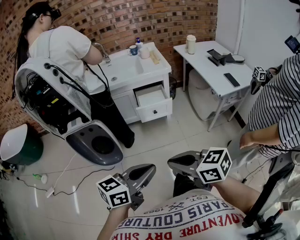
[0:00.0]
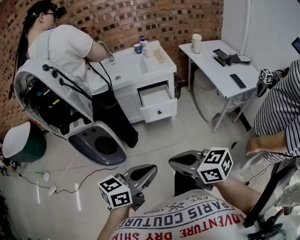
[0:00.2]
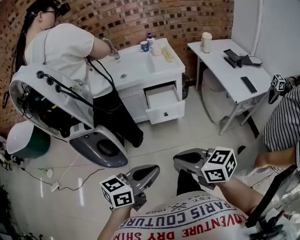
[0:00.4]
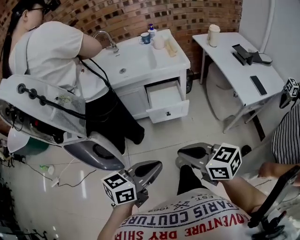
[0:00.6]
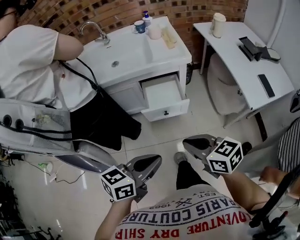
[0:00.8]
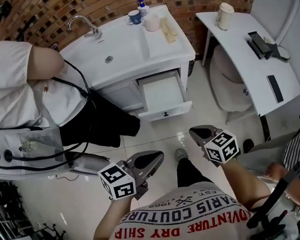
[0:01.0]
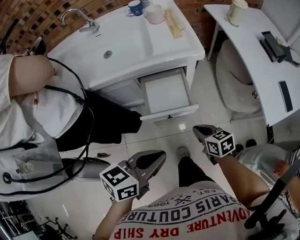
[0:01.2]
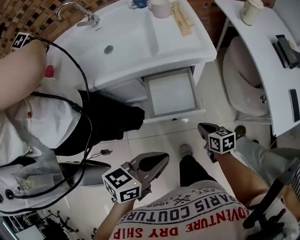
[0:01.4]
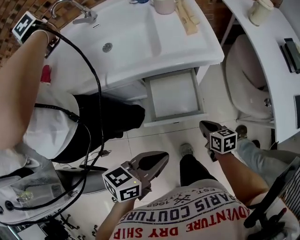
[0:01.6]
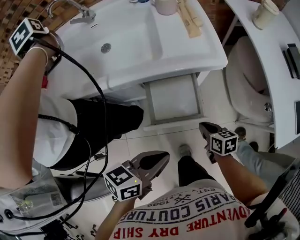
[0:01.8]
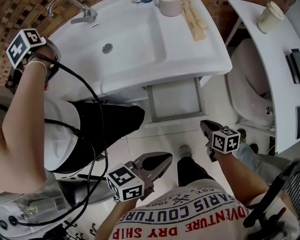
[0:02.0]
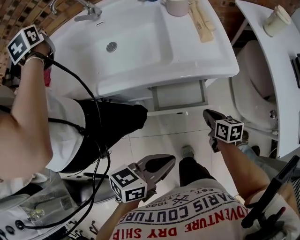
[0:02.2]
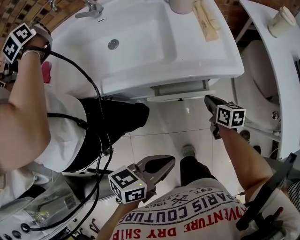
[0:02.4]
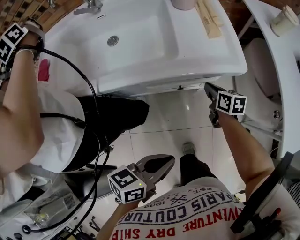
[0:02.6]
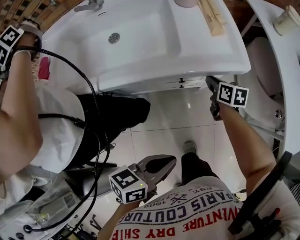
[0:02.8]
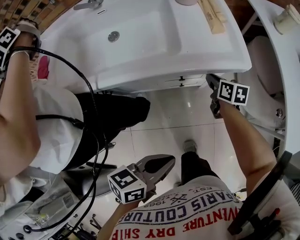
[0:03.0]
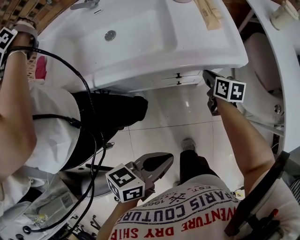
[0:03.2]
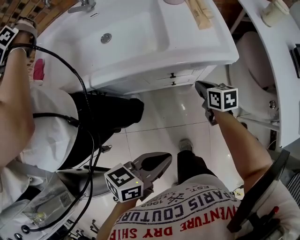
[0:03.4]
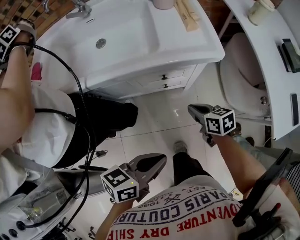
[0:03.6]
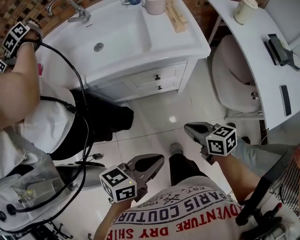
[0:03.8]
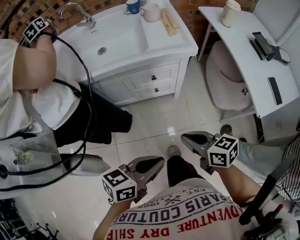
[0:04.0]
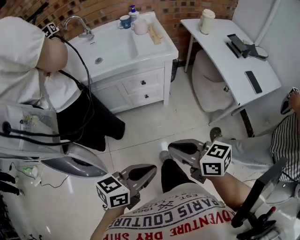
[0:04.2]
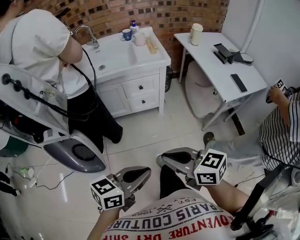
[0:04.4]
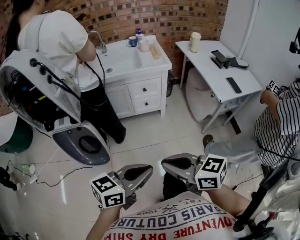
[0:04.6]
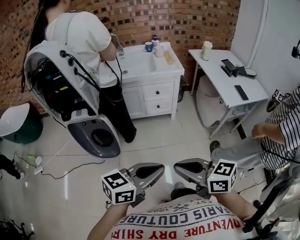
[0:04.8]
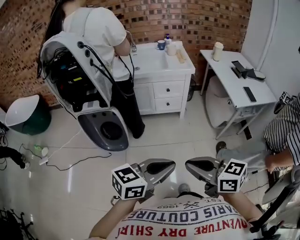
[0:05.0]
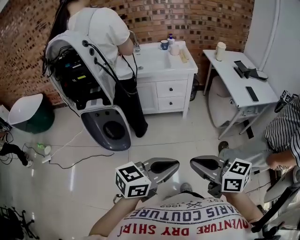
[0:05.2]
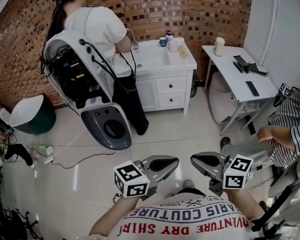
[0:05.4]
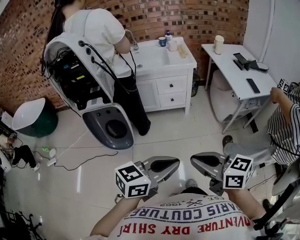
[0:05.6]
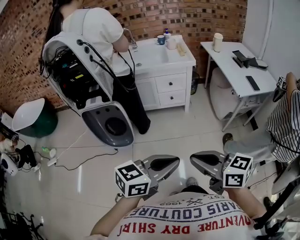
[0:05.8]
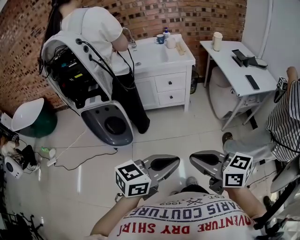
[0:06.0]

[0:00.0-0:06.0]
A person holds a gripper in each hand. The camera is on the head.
0:00.0 to 0:01.6: The two grippers travel together, forward, roughly 50 cm. The right gripper travels downward by approximately 40 cm, and changes its angle by roughly 40 degrees, while the left gripper swivels about 20 degrees.
0:01.6 to 0:03.0: The right gripper moves forward, about 20 cm; the left gripper ends up approximately 5 cm from where it was.
0:03.0 to 0:04.4: The left gripper heads backward and upward, covering roughly 40 cm, and changes its angle by roughly 20 degrees. Meanwhile the right gripper heads backward and upward, covering about 70 cm, and turns by approximately 40 degrees.
0:04.4 to 0:06.0: The grippers both shift backward and upward by some 20 cm.

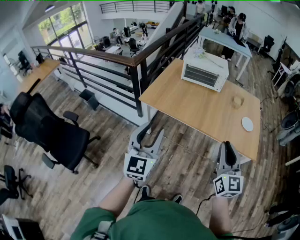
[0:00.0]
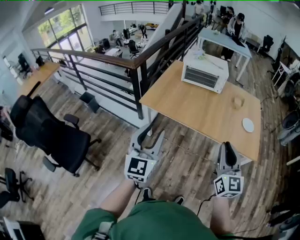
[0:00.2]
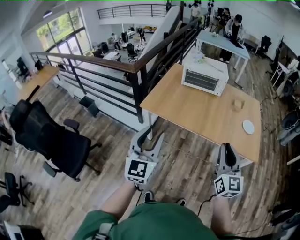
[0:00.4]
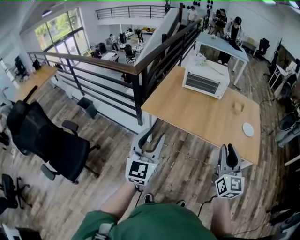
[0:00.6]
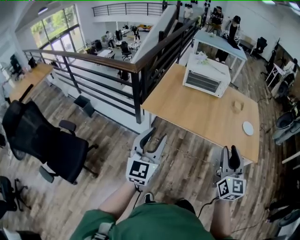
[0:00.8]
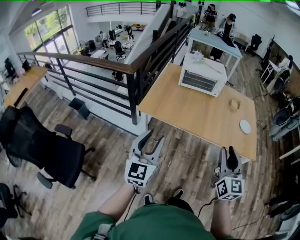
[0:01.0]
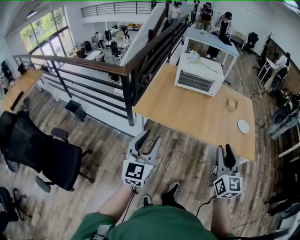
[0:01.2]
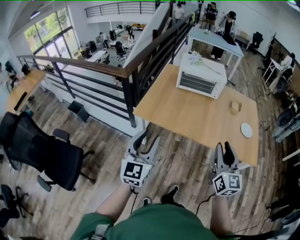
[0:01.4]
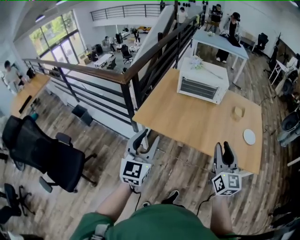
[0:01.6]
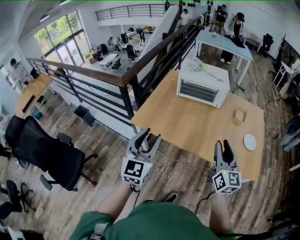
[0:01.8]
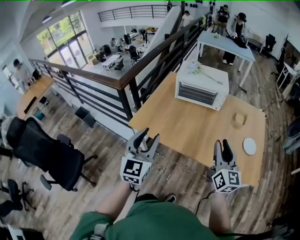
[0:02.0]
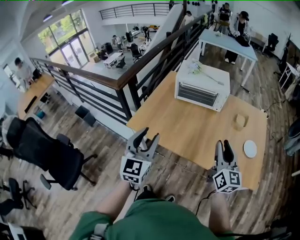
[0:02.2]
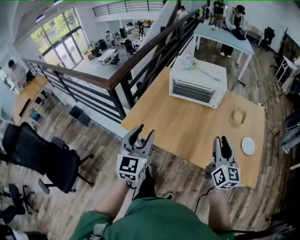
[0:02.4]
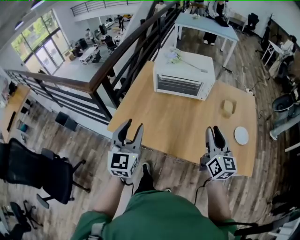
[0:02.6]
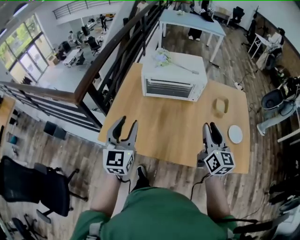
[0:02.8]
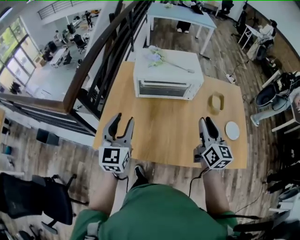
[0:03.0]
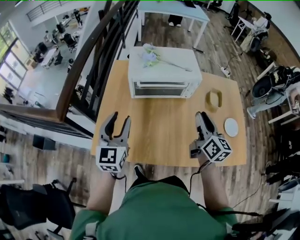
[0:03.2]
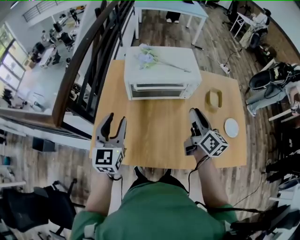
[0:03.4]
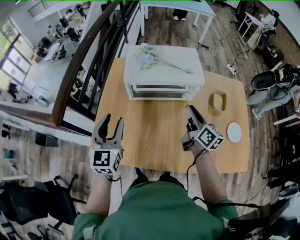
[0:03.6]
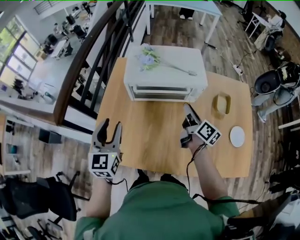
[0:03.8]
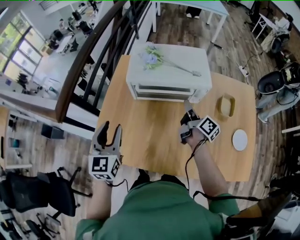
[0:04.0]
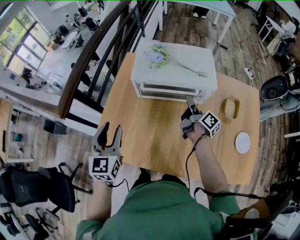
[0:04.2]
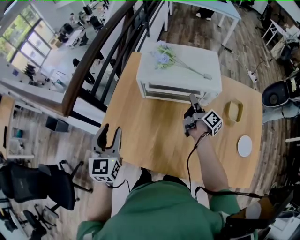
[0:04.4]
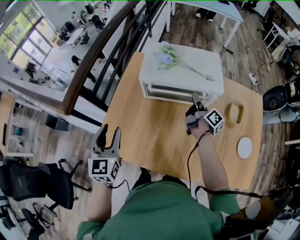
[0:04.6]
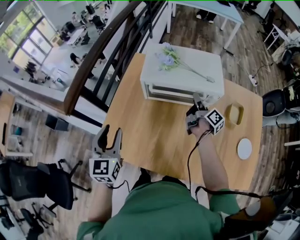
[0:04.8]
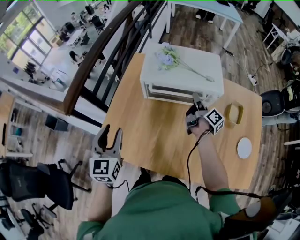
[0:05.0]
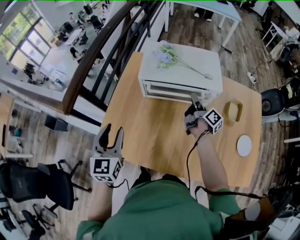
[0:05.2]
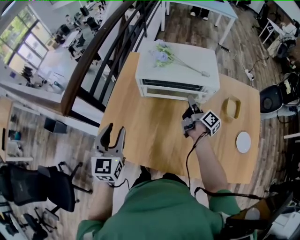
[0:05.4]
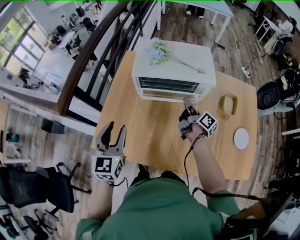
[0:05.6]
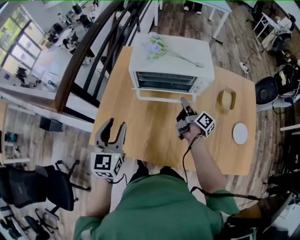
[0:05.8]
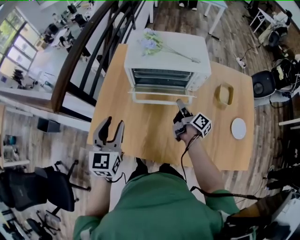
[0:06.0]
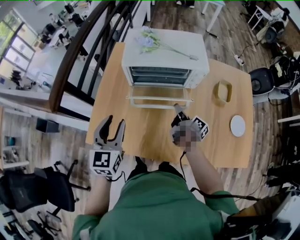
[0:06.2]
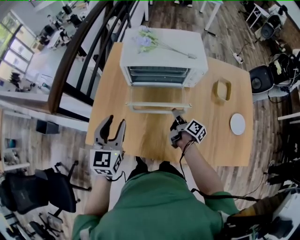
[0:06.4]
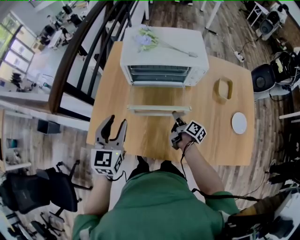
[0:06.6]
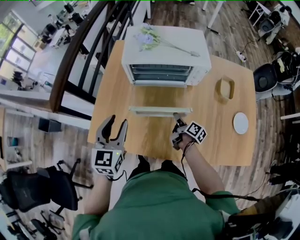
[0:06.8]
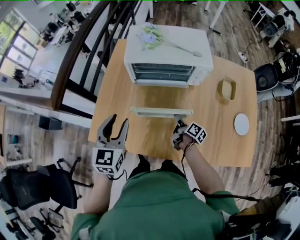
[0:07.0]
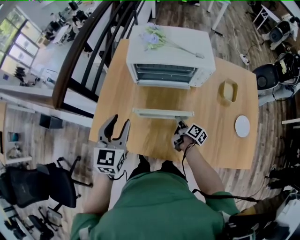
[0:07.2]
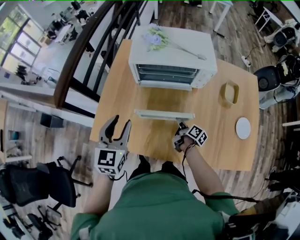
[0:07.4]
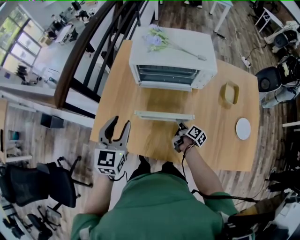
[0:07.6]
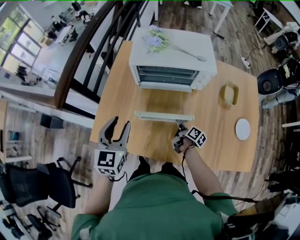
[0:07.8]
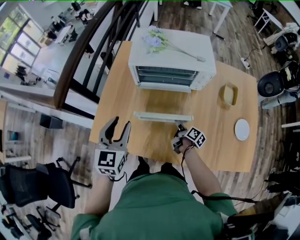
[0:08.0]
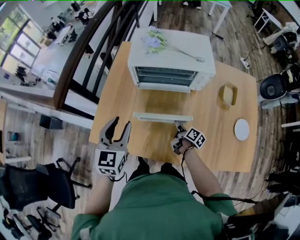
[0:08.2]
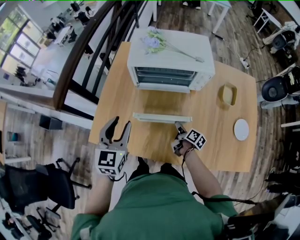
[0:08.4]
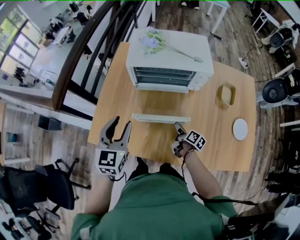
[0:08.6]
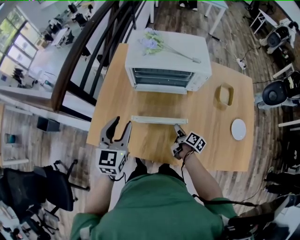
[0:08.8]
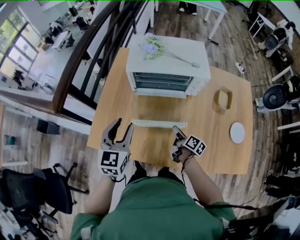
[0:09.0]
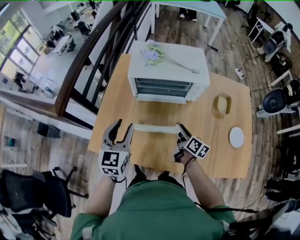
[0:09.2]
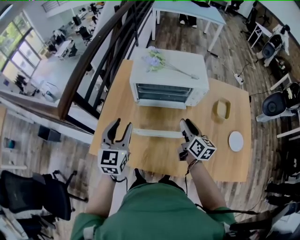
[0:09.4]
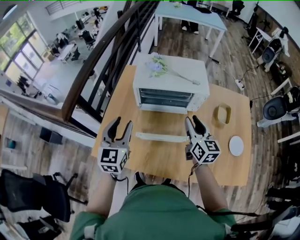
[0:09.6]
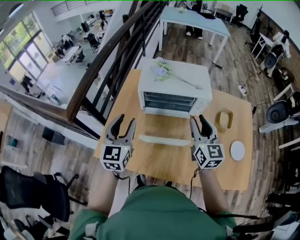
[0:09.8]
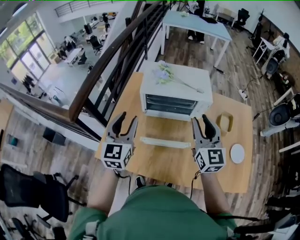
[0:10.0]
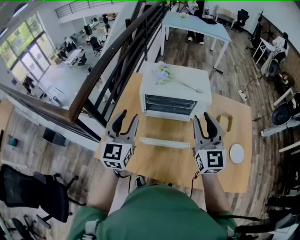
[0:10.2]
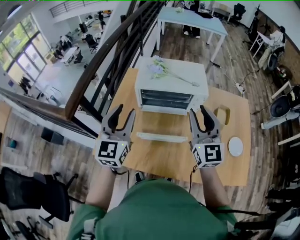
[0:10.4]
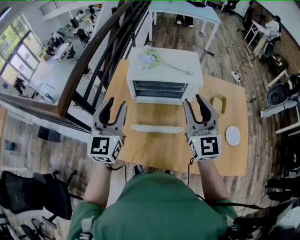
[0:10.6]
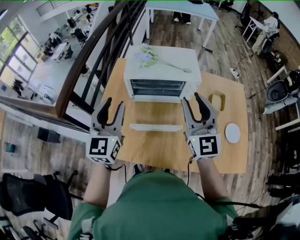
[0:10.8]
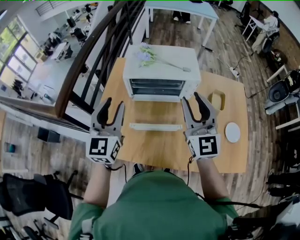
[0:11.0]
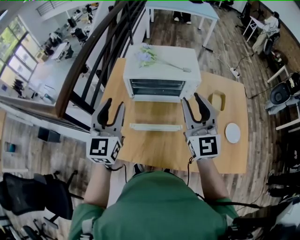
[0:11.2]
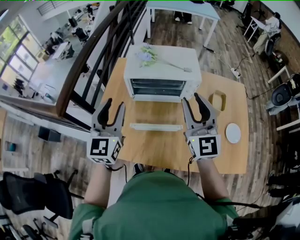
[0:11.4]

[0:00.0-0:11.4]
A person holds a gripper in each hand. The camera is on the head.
0:00.0 to 0:01.4: Both grippers travel together forward and to the left, some 10 cm.
0:01.4 to 0:02.8: The two grippers go approximately 30 cm forward.
0:02.8 to 0:04.2: The right gripper shifts some 35 cm forward and downward, and twists about 60 degrees clockwise, seen from behind, while the left gripper goes roughly 15 cm forward and downward.
0:04.2 to 0:05.6: There are only small adjustments of the grippers.
0:05.6 to 0:07.2: The right gripper moves downward and backward, roughly 20 cm.
0:07.2 to 0:08.6: The grippers move only a little.
0:08.6 to 0:10.0: The right gripper travels upward by about 40 cm, and twists approximately 70 degrees counterclockwise, seen from behind. Meanwhile the left gripper is displaced upward by roughly 10 cm.
0:10.0 to 0:11.4: The grippers make only small movements.

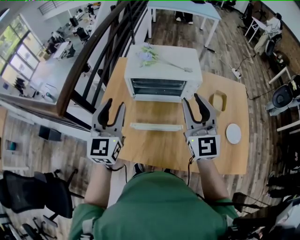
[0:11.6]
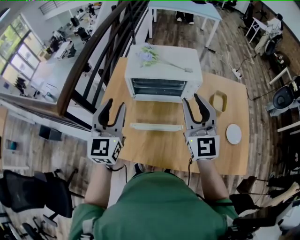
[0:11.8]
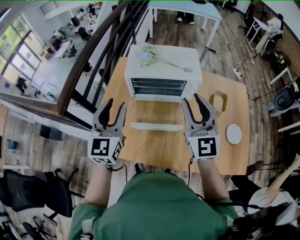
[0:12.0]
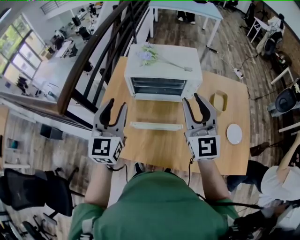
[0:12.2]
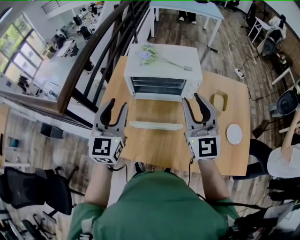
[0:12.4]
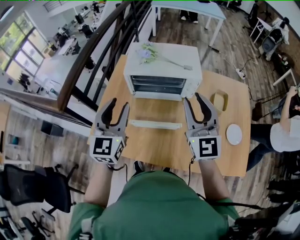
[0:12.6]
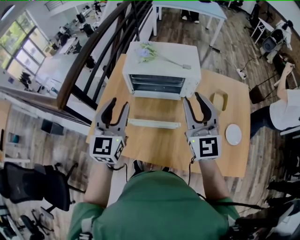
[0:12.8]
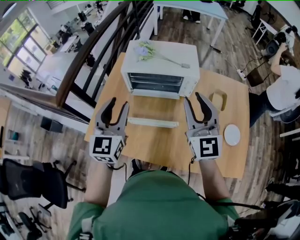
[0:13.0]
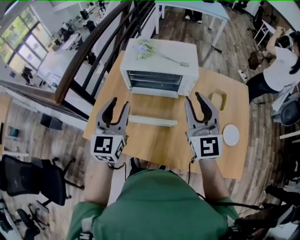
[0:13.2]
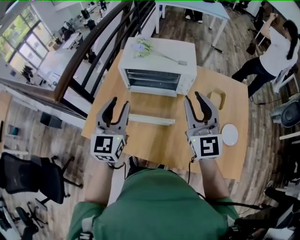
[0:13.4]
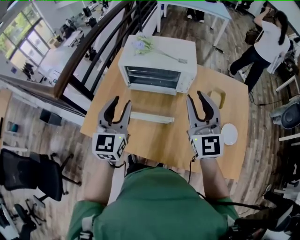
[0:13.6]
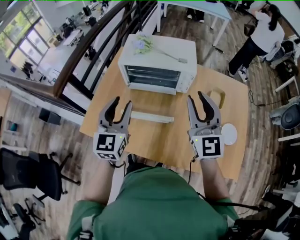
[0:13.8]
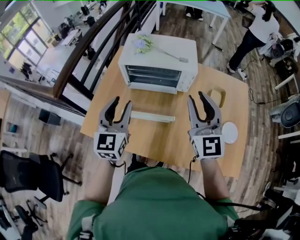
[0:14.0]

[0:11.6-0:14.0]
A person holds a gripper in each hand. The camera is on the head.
0:11.6 to 0:12.8: The left gripper shifts by roughly 5 cm.
0:12.8 to 0:14.0: The left gripper ends up approximately 5 cm from where it was.

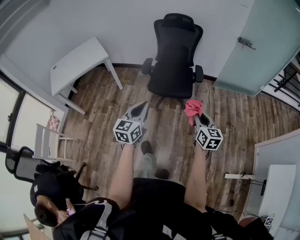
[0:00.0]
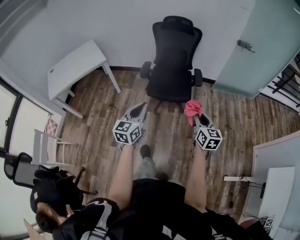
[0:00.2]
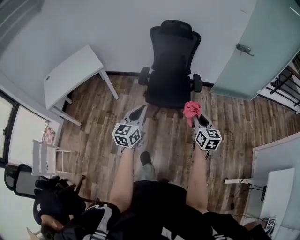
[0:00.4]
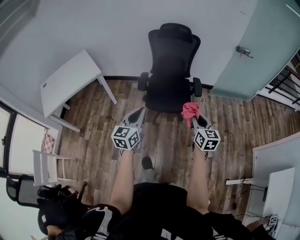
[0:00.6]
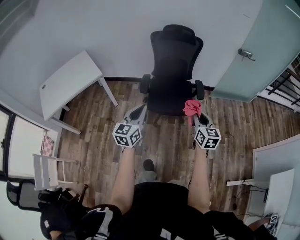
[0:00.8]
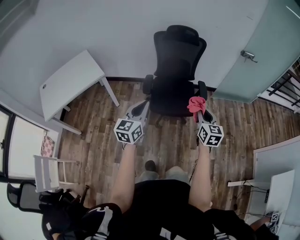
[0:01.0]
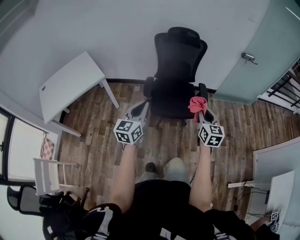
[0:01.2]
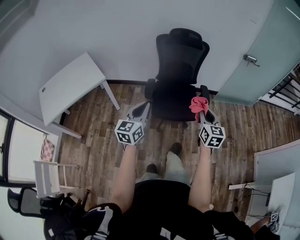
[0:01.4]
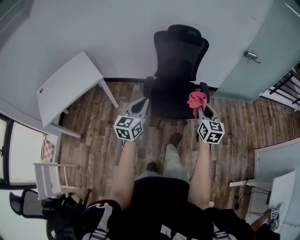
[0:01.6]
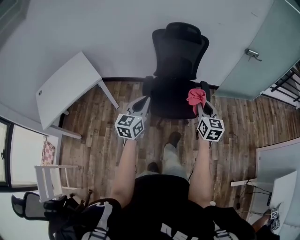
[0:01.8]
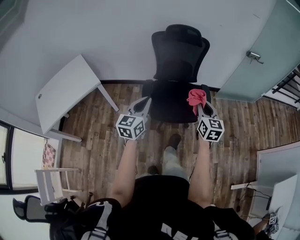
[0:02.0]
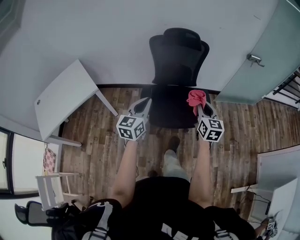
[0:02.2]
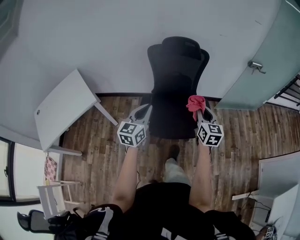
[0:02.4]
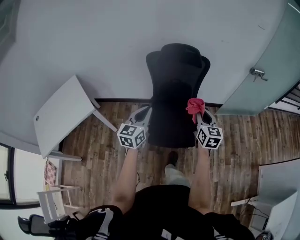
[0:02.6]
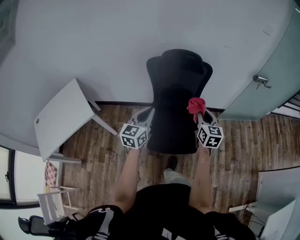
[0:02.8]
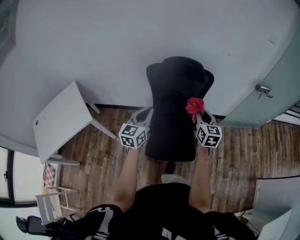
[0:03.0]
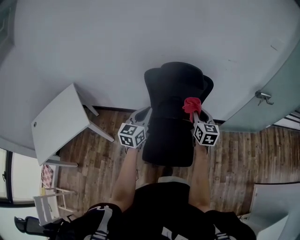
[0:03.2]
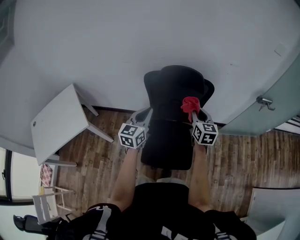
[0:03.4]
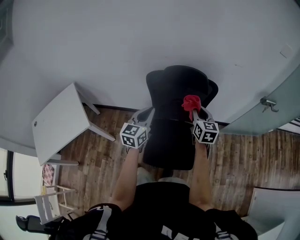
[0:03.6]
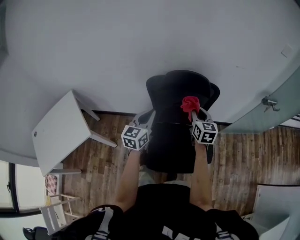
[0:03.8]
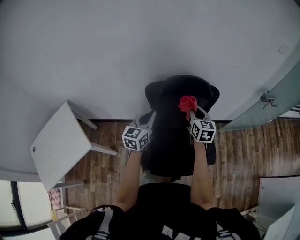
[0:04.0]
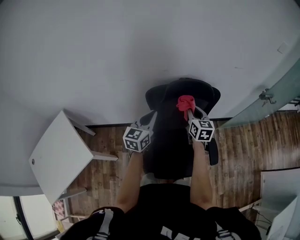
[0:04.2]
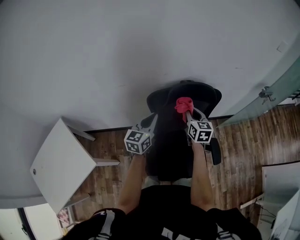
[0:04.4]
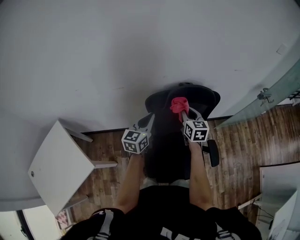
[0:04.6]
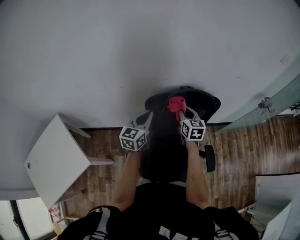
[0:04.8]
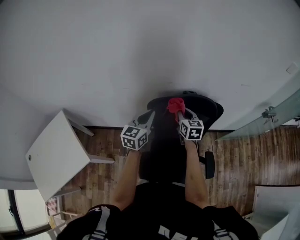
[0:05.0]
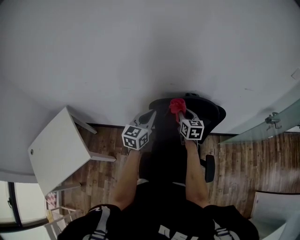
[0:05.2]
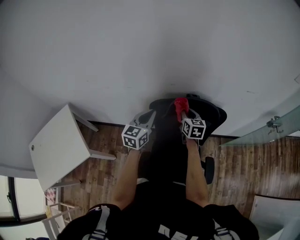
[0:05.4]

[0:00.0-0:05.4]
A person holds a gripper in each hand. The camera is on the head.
0:00.0 to 0:01.4: Both grippers move forward and to the left, roughly 25 cm.
0:01.4 to 0:02.8: Both grippers travel together forward, roughly 35 cm.
0:02.8 to 0:04.0: The right gripper shifts about 25 cm forward and to the left, while the left gripper moves forward, roughly 25 cm.
0:04.0 to 0:05.4: The left gripper shifts roughly 10 cm forward. The right gripper goes roughly 15 cm forward and to the left.
